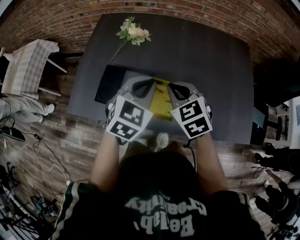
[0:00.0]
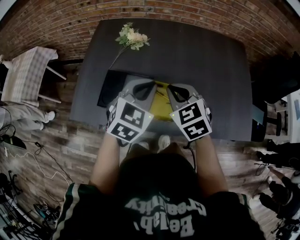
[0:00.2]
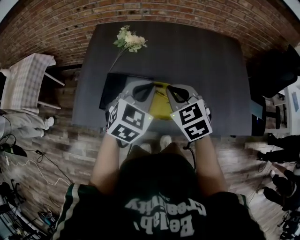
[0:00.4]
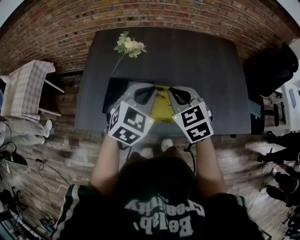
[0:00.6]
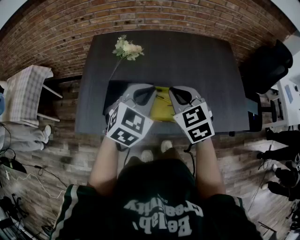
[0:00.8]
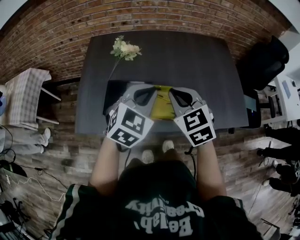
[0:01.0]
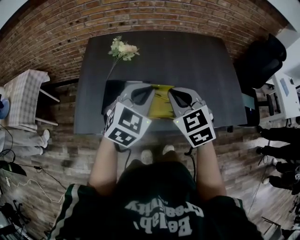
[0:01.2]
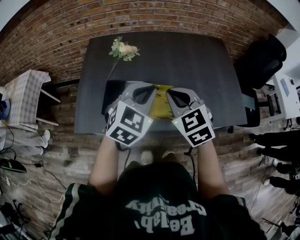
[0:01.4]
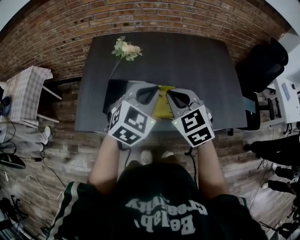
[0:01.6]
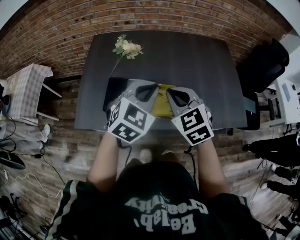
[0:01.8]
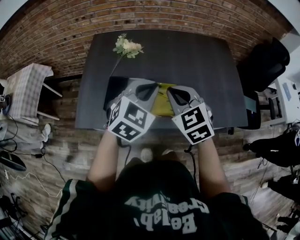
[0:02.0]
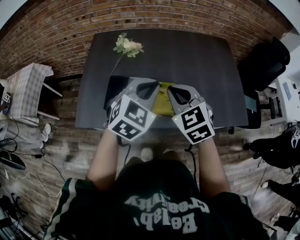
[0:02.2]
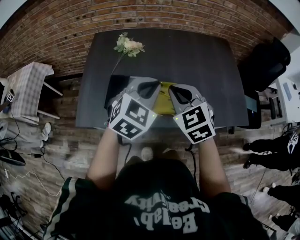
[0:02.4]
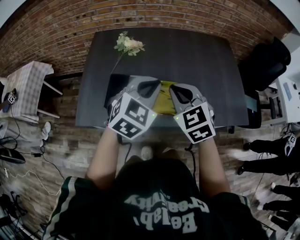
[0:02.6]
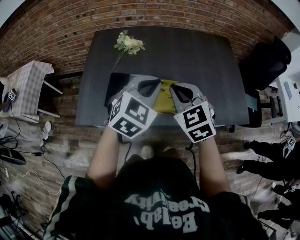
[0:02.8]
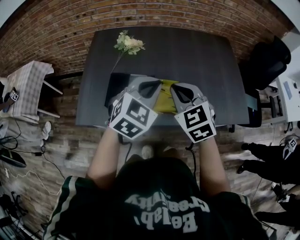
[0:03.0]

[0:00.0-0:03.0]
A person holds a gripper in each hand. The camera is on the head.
0:00.0 to 0:01.6: The right gripper shifts some 15 cm upward and backward. The left gripper travels backward and upward by about 10 cm.
0:01.6 to 0:03.0: Both grippers stay about where they are.

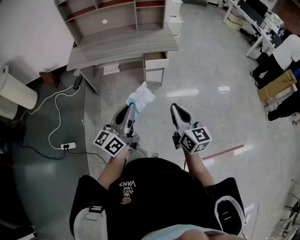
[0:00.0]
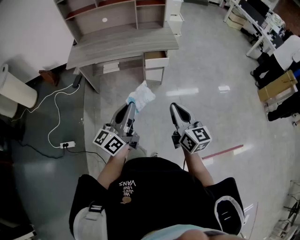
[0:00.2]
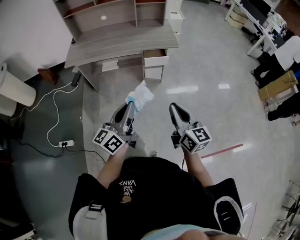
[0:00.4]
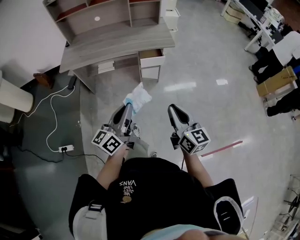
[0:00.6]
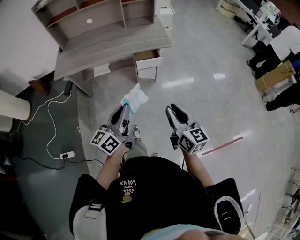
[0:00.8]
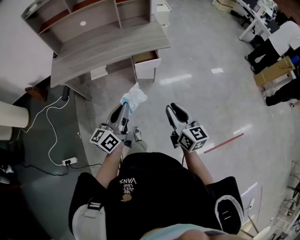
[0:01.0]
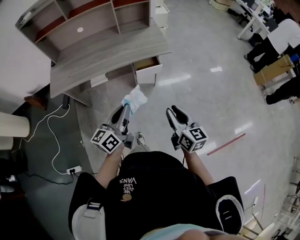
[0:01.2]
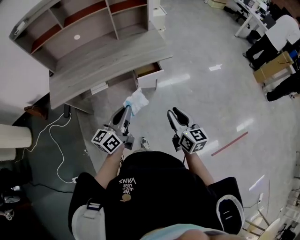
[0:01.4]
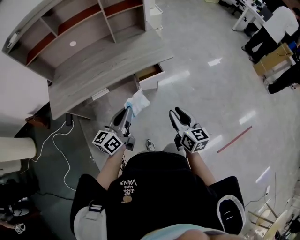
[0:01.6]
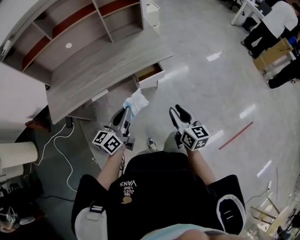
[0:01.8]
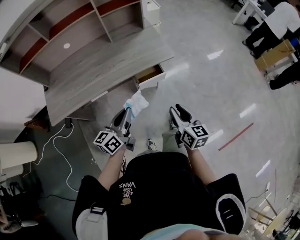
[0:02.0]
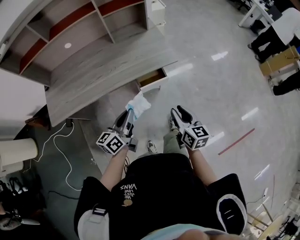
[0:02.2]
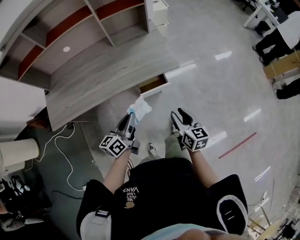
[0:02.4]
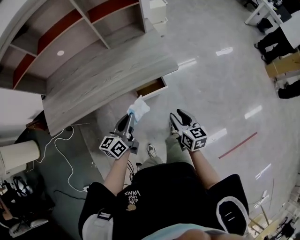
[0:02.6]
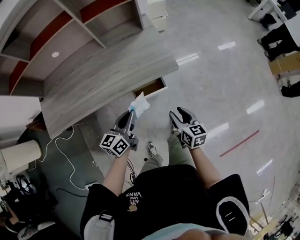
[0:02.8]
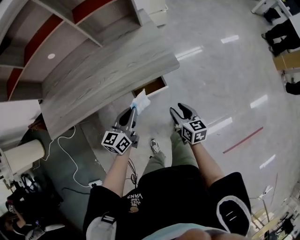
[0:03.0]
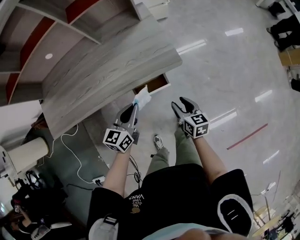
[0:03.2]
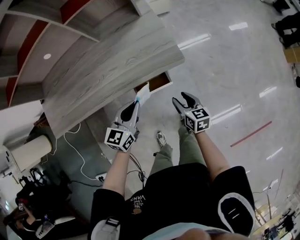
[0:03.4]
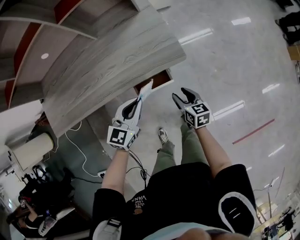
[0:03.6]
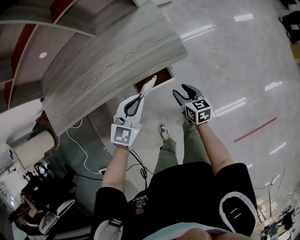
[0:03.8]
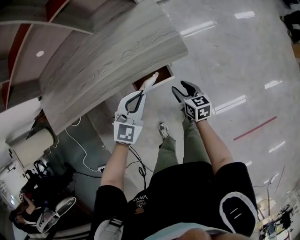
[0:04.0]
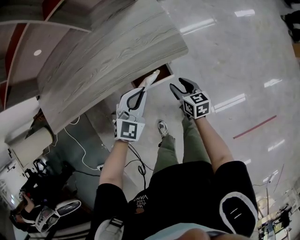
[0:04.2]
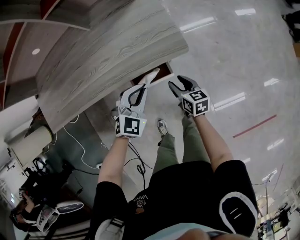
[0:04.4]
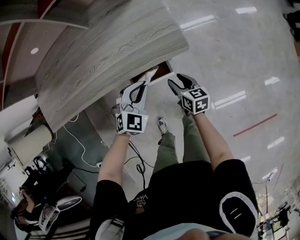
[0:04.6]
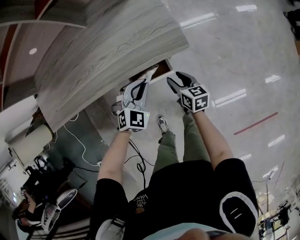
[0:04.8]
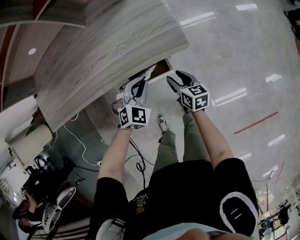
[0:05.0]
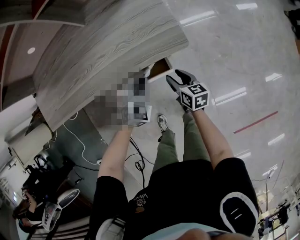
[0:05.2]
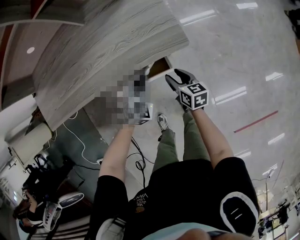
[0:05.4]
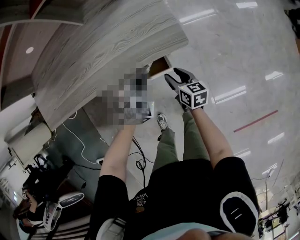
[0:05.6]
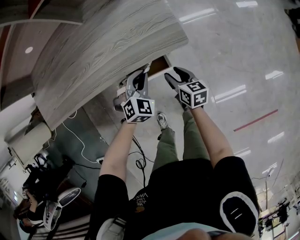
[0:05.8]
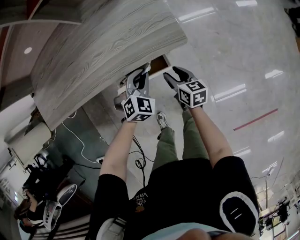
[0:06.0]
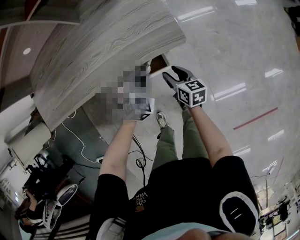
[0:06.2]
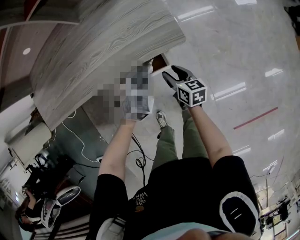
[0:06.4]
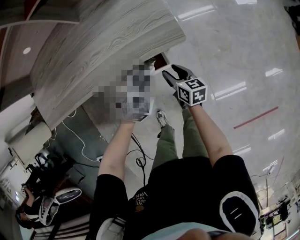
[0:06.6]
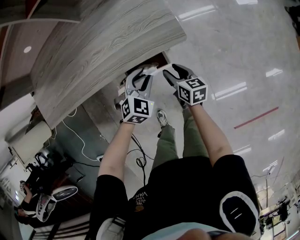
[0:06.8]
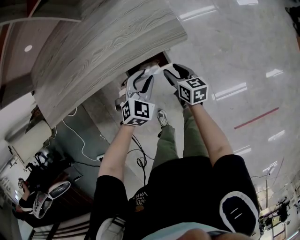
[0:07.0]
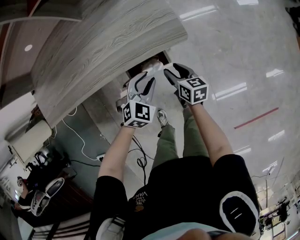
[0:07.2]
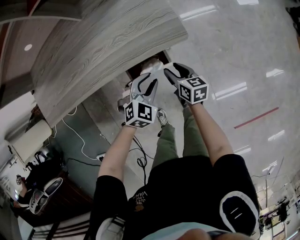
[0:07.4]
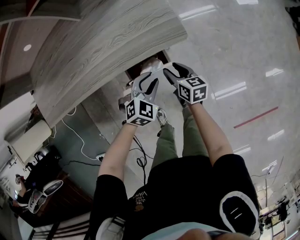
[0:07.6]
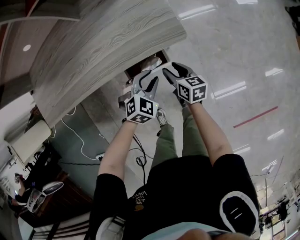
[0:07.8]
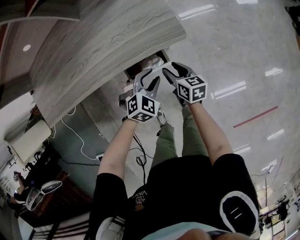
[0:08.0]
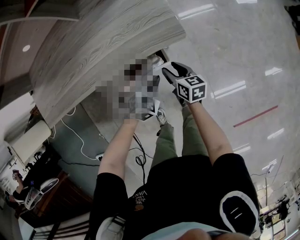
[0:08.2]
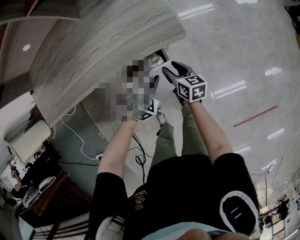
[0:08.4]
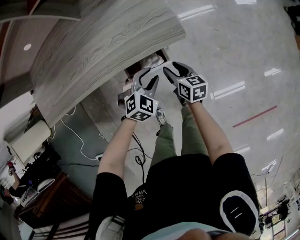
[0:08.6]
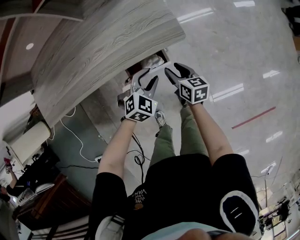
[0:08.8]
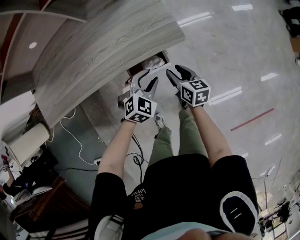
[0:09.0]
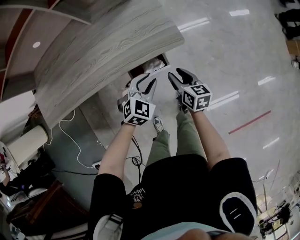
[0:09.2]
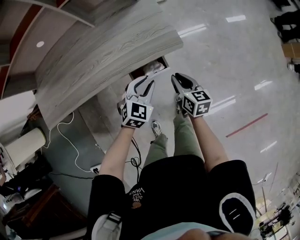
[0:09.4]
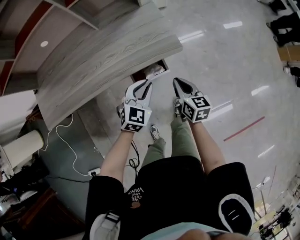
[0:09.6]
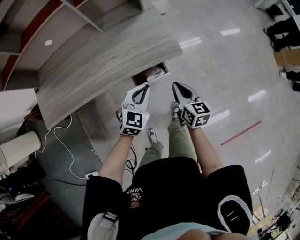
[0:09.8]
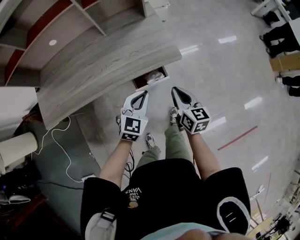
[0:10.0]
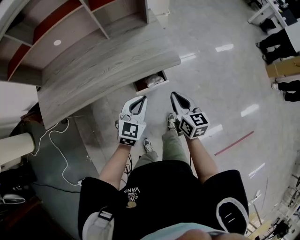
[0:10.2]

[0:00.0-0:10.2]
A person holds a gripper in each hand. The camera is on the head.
0:00.0 to 0:01.4: The left gripper heads forward, covering roughly 25 cm; the right gripper shifts roughly 20 cm forward and downward.
0:01.4 to 0:03.0: Both grippers travel together forward and downward, some 30 cm. The right gripper rotates roughly 20 degrees.
0:03.0 to 0:04.4: The left gripper shifts about 10 cm to the right, downward and forward, and twists roughly 50 degrees clockwise, seen from behind. Meanwhile the right gripper heads downward and forward, covering about 15 cm.
0:04.4 to 0:05.8: The left gripper travels downward by roughly 5 cm.
0:05.8 to 0:07.2: The grippers stay close to where they were, moving slightly.
0:07.2 to 0:08.8: The grippers make only small movements.
0:08.8 to 0:10.2: Both grippers travel together upward, roughly 20 cm. The right gripper changes its angle by roughly 20 degrees, and closes its fingers. The left gripper changes its angle by some 30 degrees, and closes up.

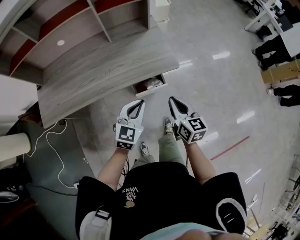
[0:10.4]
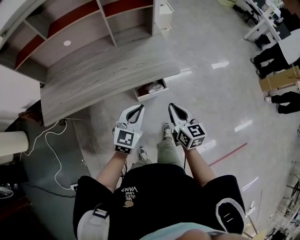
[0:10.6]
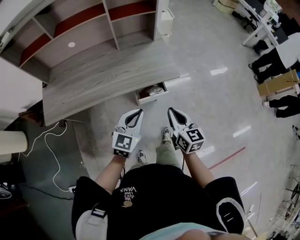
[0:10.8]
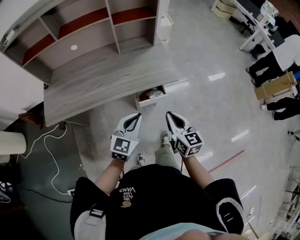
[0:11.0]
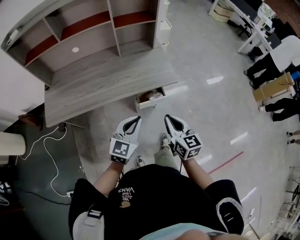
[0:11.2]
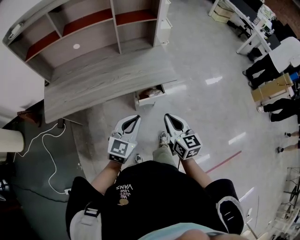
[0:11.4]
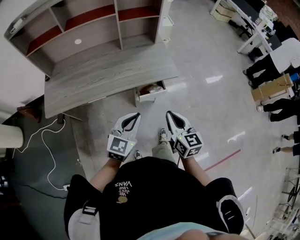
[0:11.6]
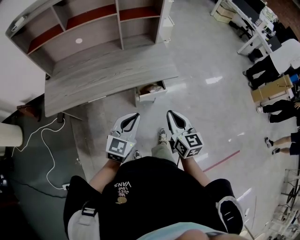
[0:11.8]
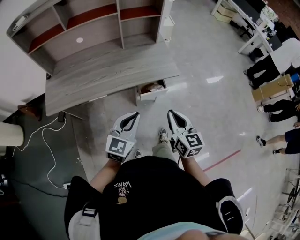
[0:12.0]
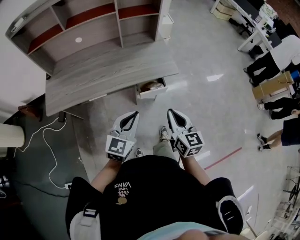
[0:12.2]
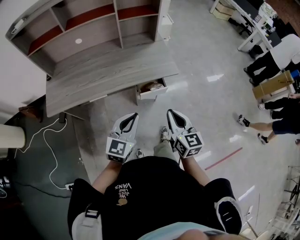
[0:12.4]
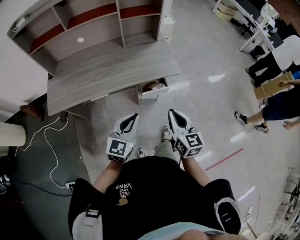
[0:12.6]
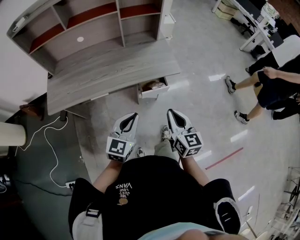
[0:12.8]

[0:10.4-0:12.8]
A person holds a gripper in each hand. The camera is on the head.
0:10.4 to 0:11.6: Both grippers travel together backward and upward, roughly 15 cm.
0:11.6 to 0:12.8: There are only small adjustments of the grippers.

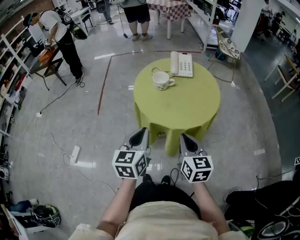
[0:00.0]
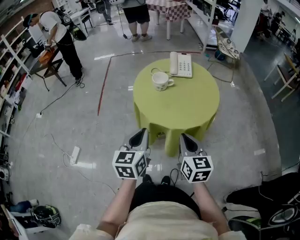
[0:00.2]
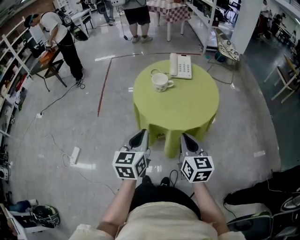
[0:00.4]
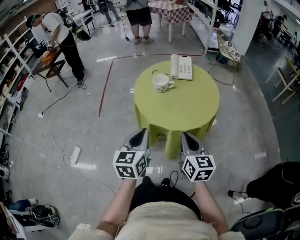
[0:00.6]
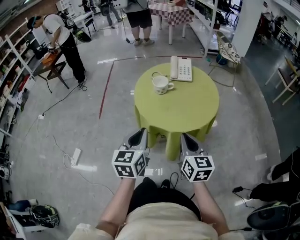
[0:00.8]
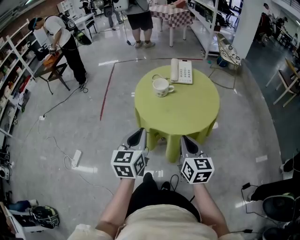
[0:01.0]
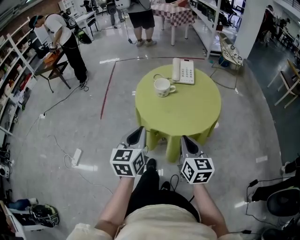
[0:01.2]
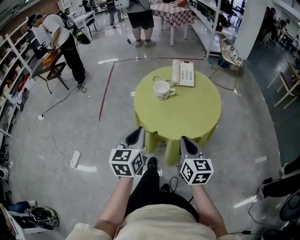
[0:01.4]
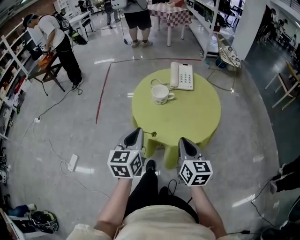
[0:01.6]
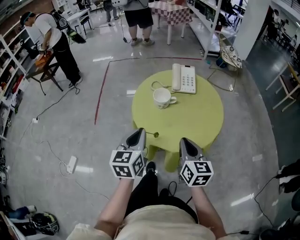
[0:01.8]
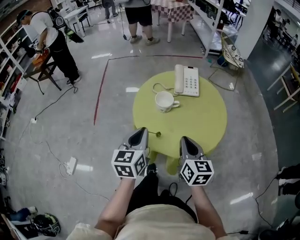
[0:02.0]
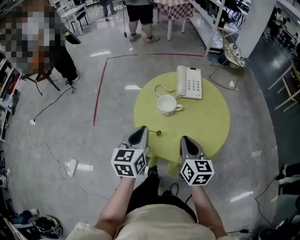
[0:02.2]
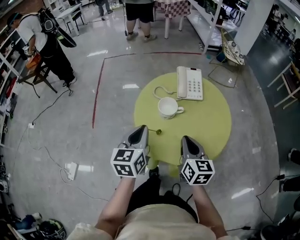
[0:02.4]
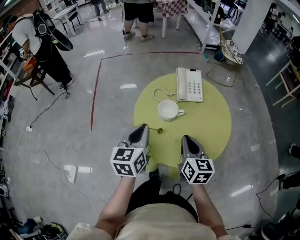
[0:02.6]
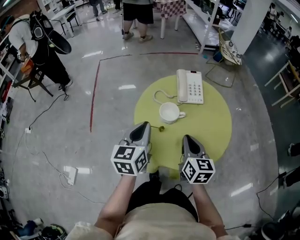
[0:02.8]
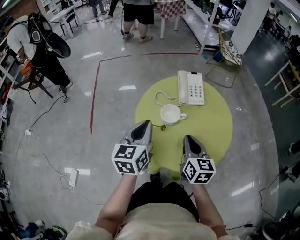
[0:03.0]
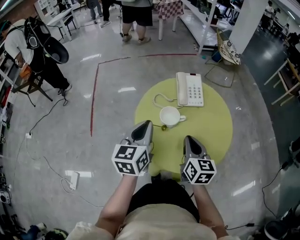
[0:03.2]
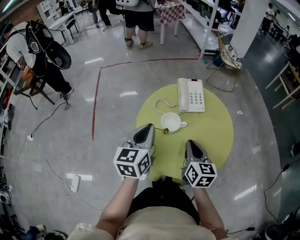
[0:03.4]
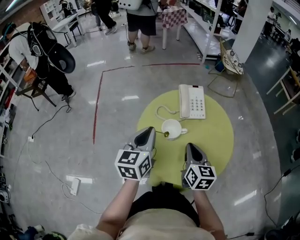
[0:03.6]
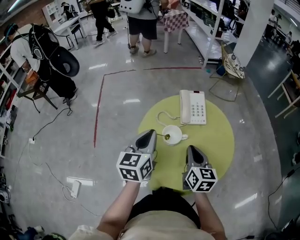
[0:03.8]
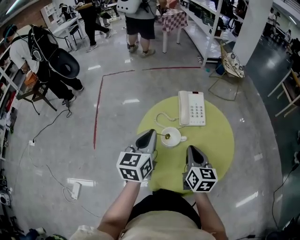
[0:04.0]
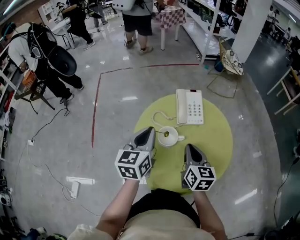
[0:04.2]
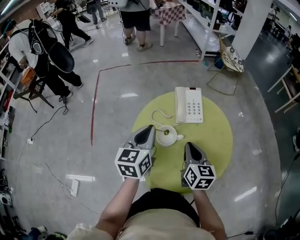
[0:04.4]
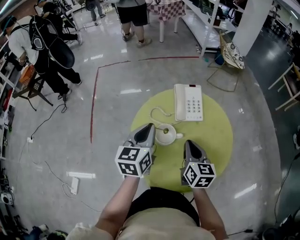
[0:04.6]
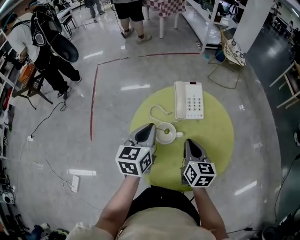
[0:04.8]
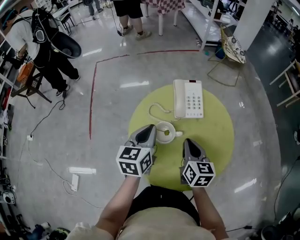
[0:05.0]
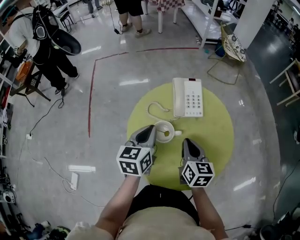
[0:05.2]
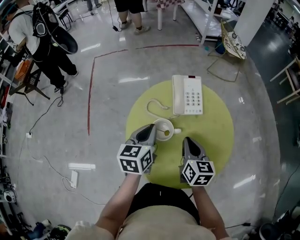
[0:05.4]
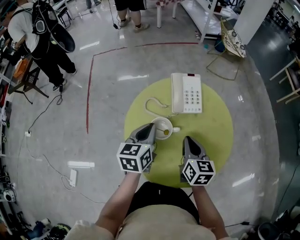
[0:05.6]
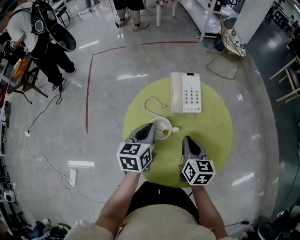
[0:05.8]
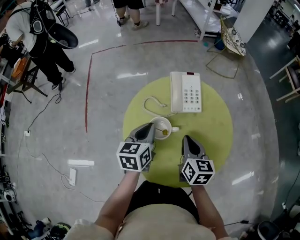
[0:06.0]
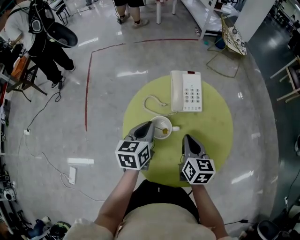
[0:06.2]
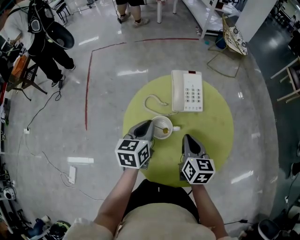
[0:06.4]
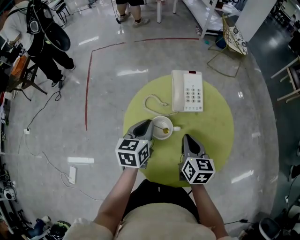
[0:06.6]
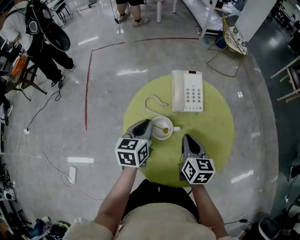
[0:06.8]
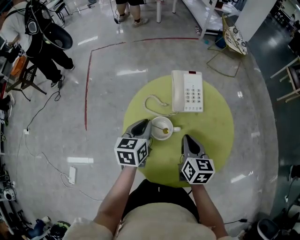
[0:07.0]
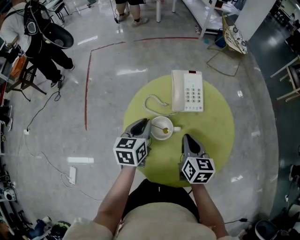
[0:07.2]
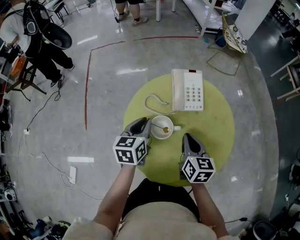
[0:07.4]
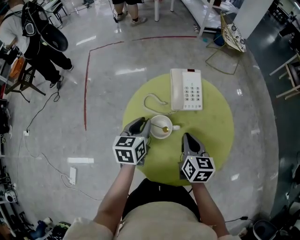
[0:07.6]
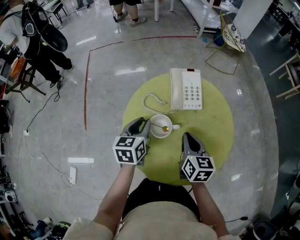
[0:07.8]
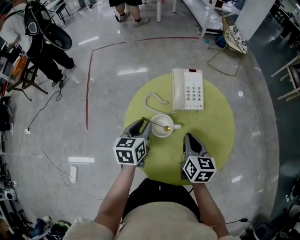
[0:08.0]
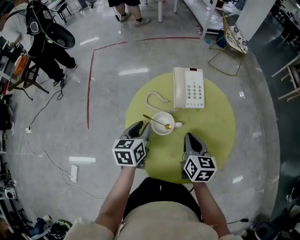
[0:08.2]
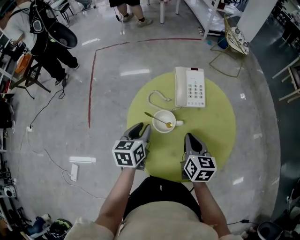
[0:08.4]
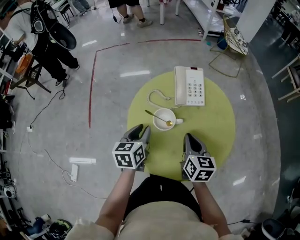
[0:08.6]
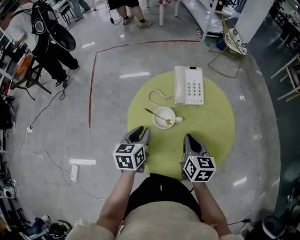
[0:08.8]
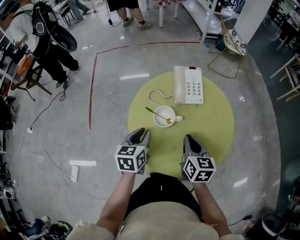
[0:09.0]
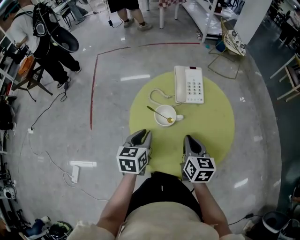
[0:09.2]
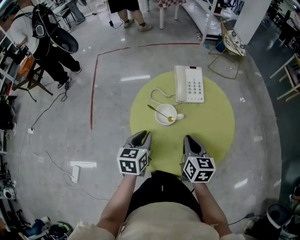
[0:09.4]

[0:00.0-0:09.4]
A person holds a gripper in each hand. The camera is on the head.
0:00.0 to 0:01.6: The grippers both shift forward by some 5 cm.
0:01.6 to 0:03.2: The two grippers go roughly 20 cm forward.
0:03.2 to 0:04.8: The grippers both shift forward by roughly 10 cm.
0:04.8 to 0:06.2: The left gripper moves downward, approximately 5 cm.
0:06.2 to 0:07.8: The left gripper opens.
0:07.8 to 0:09.4: The right gripper shifts approximately 5 cm backward; the left gripper travels backward by approximately 10 cm.
